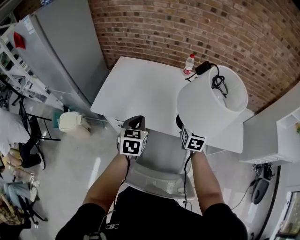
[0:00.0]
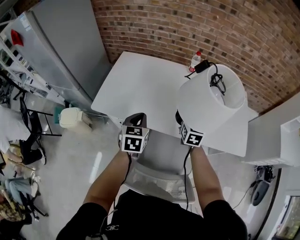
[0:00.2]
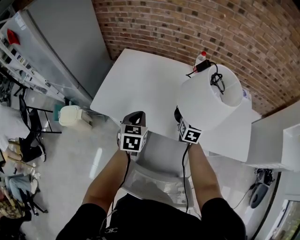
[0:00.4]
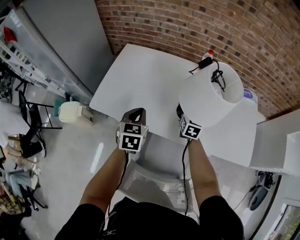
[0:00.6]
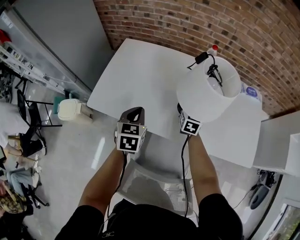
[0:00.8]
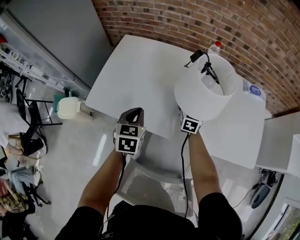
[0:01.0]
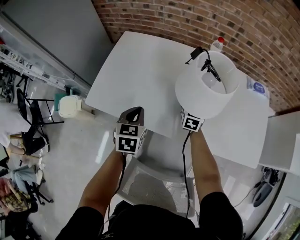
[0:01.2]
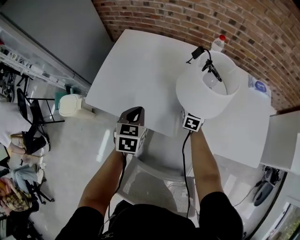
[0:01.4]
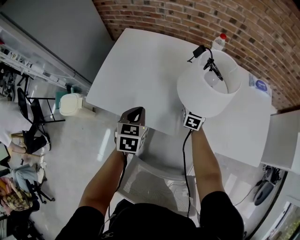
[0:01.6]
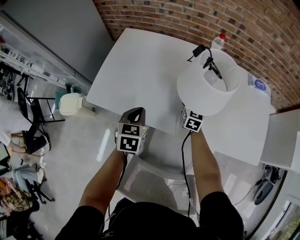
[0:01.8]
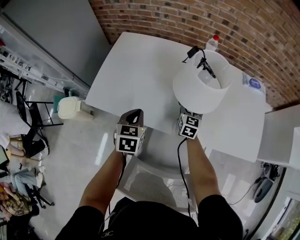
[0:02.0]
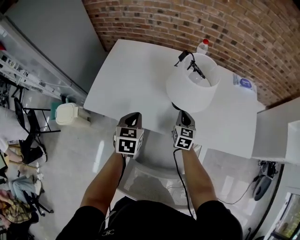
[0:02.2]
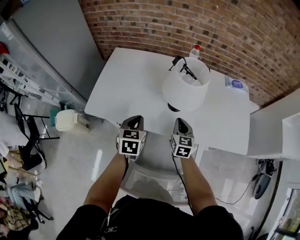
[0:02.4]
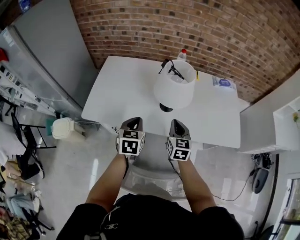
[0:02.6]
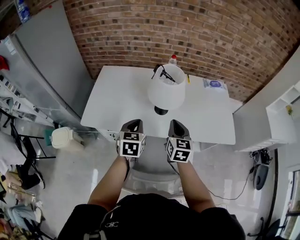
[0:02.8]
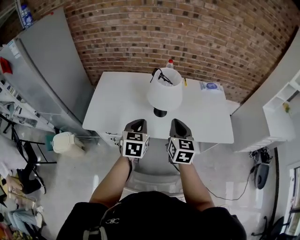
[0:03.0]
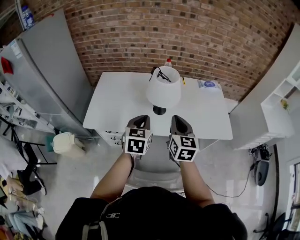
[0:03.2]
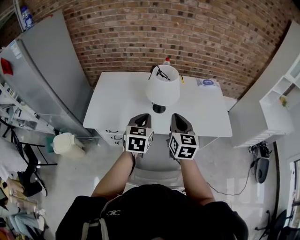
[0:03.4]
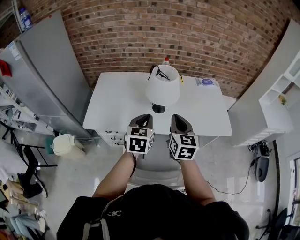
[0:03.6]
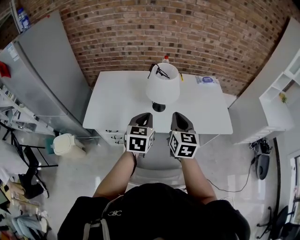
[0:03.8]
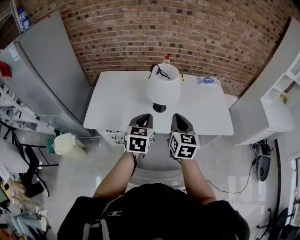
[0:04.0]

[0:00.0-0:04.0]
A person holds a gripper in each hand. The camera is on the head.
0:00.0 to 0:01.4: The right gripper is displaced downward and forward by approximately 30 cm. The left gripper goes some 15 cm downward and forward.
0:01.4 to 0:02.6: The right gripper goes some 25 cm backward and upward, and closes up. The left gripper goes about 10 cm upward, backward and to the right.
0:02.6 to 0:04.0: The left gripper travels upward and to the right by some 15 cm, while the right gripper heads upward and backward, covering approximately 15 cm.

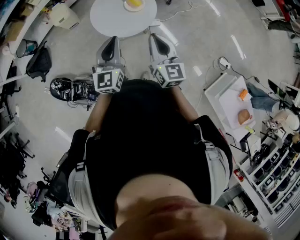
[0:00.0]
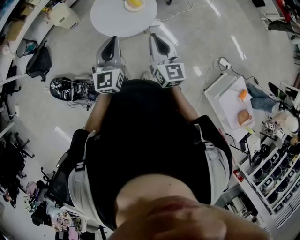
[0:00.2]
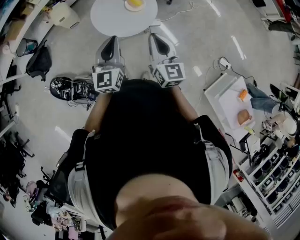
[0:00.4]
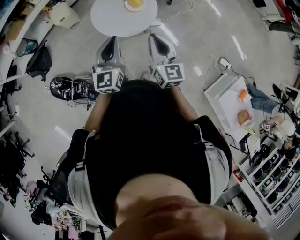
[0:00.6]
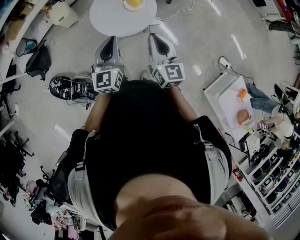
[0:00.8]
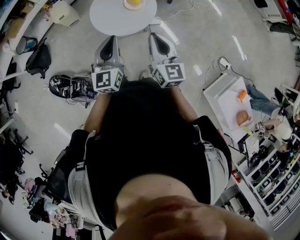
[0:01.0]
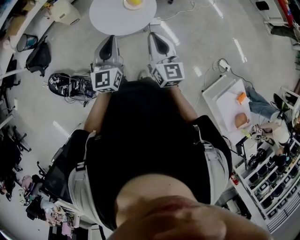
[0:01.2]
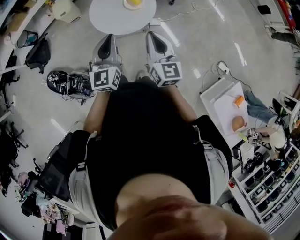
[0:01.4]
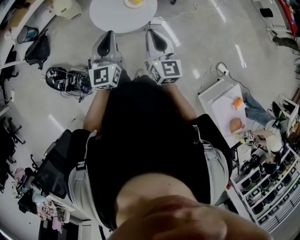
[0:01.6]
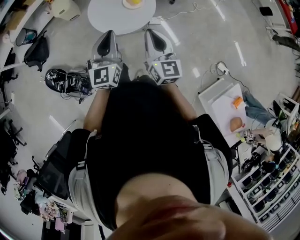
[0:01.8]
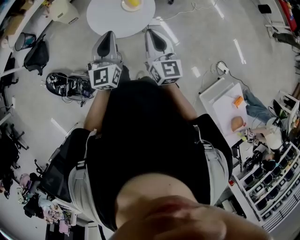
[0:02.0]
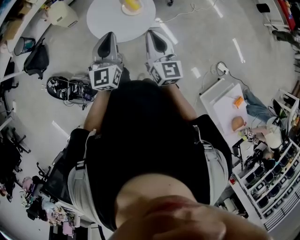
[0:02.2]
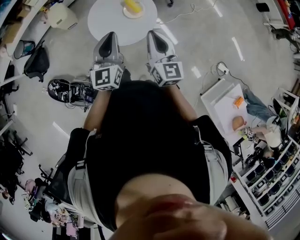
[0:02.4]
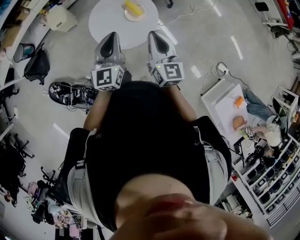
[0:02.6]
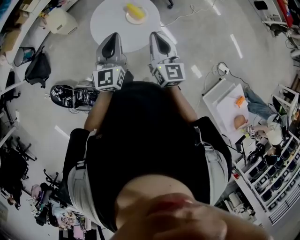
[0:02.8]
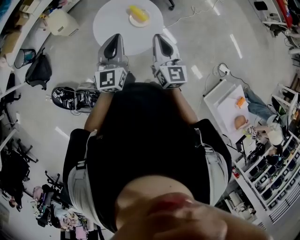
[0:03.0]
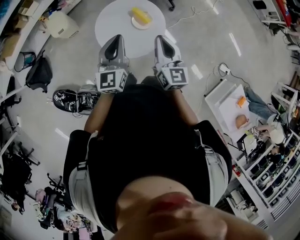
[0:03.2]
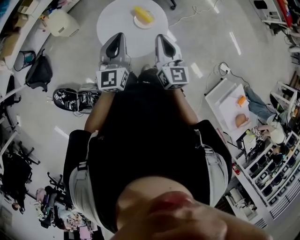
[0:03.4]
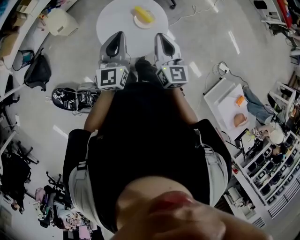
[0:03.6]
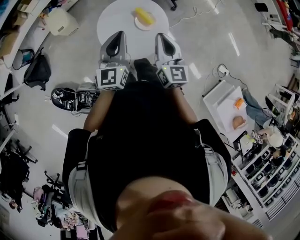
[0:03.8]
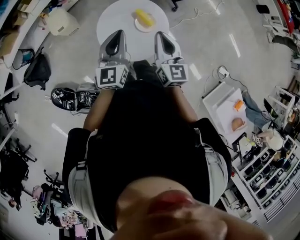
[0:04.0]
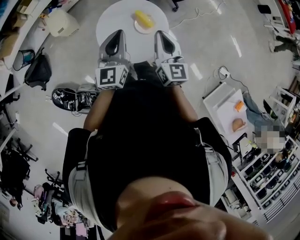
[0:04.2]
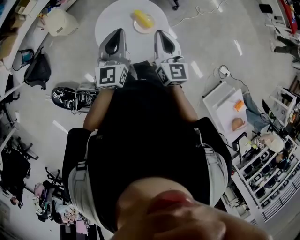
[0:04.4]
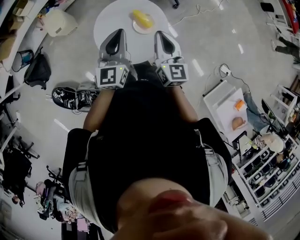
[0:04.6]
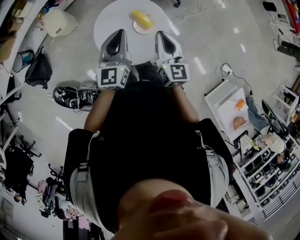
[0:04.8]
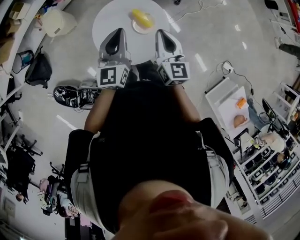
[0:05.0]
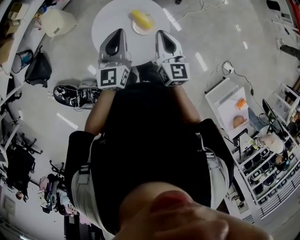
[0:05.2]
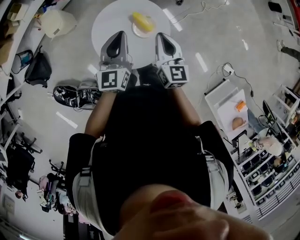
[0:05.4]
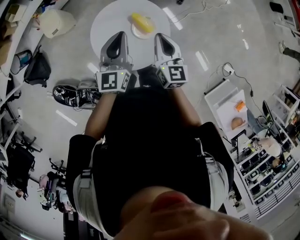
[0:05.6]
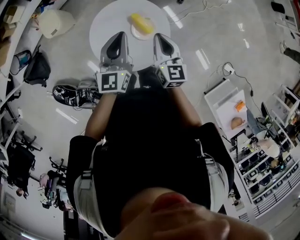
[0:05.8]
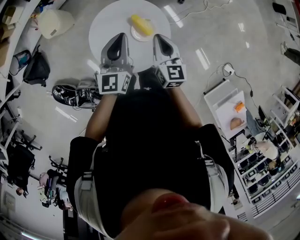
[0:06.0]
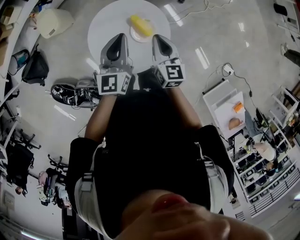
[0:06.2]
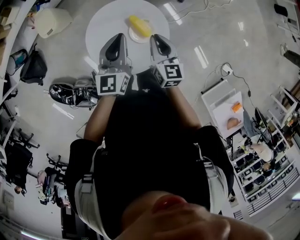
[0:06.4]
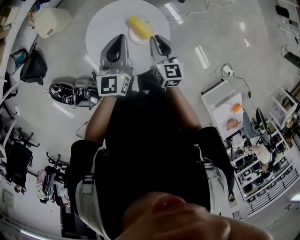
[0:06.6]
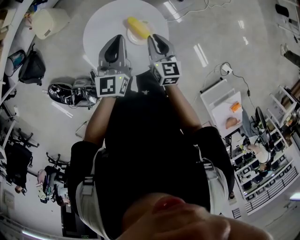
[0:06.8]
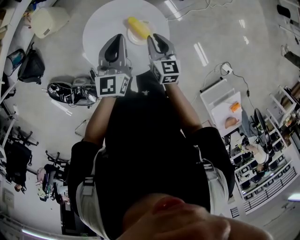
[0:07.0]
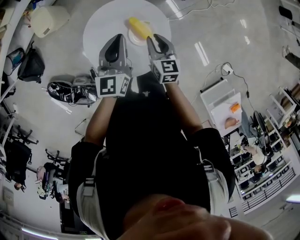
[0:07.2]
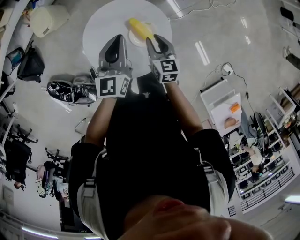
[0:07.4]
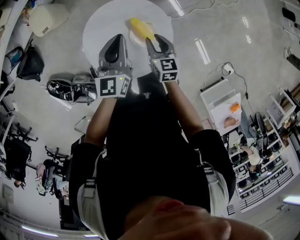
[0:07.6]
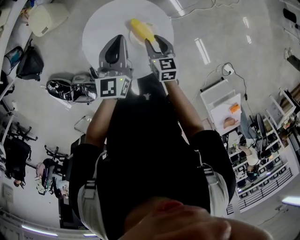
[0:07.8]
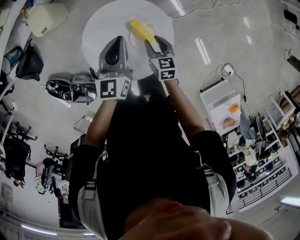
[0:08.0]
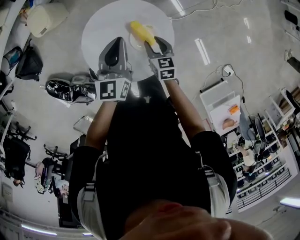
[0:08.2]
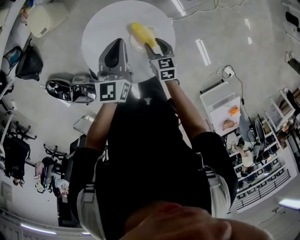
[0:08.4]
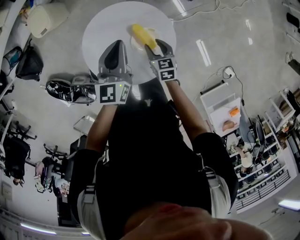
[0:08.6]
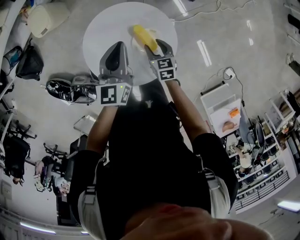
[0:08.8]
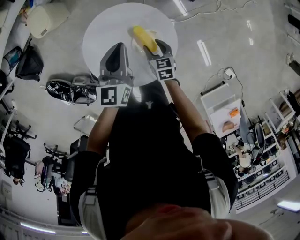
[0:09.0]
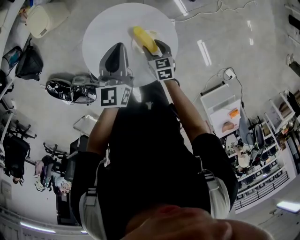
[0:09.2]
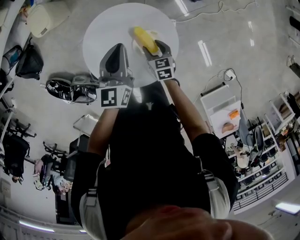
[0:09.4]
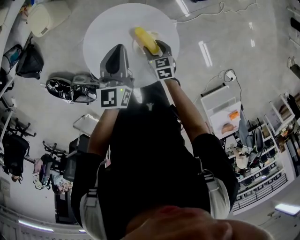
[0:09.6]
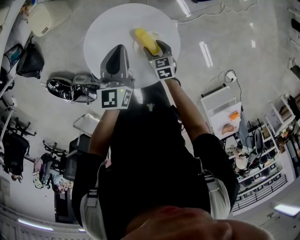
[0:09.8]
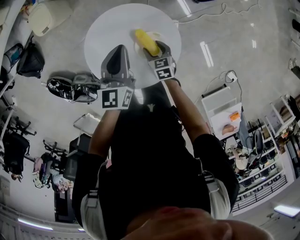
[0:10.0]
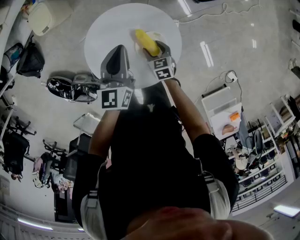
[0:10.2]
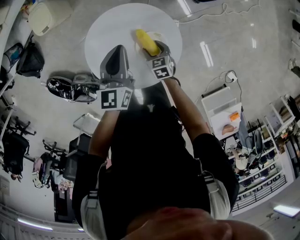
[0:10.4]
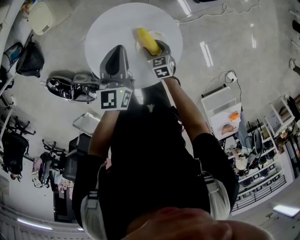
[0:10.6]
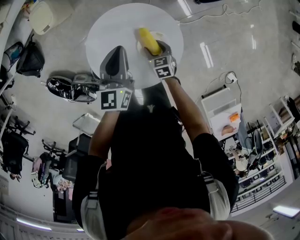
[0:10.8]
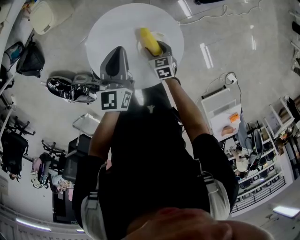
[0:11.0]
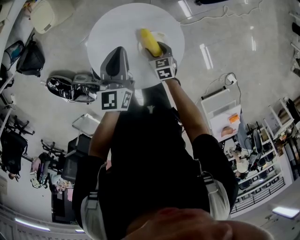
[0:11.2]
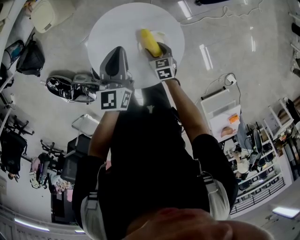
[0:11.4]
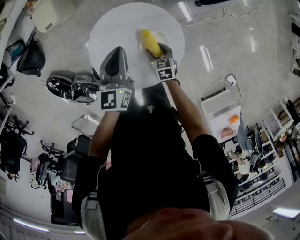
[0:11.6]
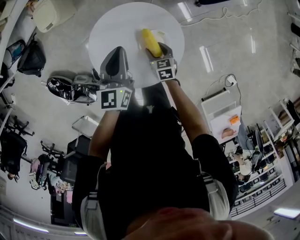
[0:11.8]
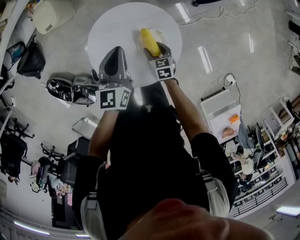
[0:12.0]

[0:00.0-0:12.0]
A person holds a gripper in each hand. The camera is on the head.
0:00.0 to 0:01.6: The grippers move only a little.
0:01.6 to 0:03.0: The grippers both shift forward by some 15 cm.
0:03.0 to 0:04.4: The two grippers go some 10 cm forward.
0:04.4 to 0:06.0: The right gripper moves downward and forward, about 15 cm; the left gripper moves forward and downward, roughly 10 cm.
0:06.0 to 0:07.6: The right gripper travels downward by roughly 15 cm, and opens up. Meanwhile the left gripper goes about 10 cm downward and forward.
0:07.6 to 0:09.0: The left gripper ends up about 5 cm from where it was, while the right gripper heads downward, covering roughly 10 cm, and opens.
0:09.0 to 0:10.4: The right gripper ends up roughly 5 cm from where it was.
0:10.4 to 0:12.0: The grippers make only small movements.

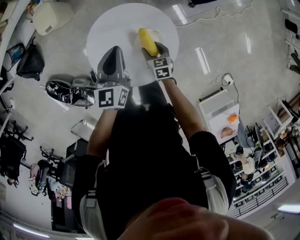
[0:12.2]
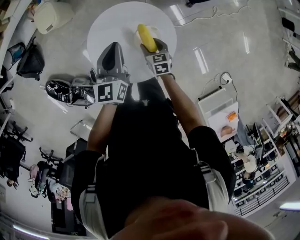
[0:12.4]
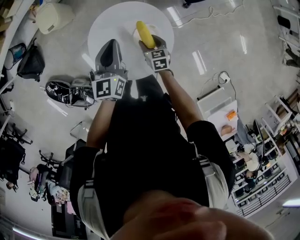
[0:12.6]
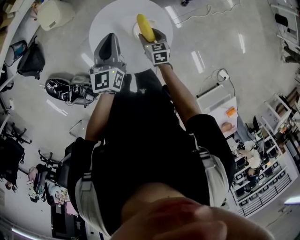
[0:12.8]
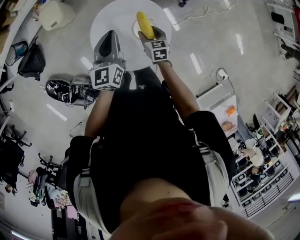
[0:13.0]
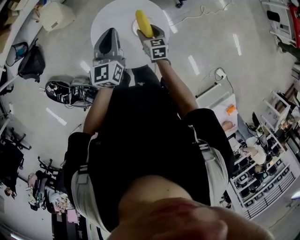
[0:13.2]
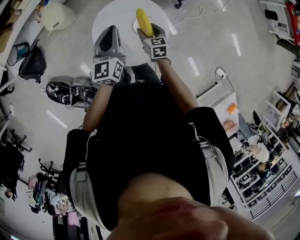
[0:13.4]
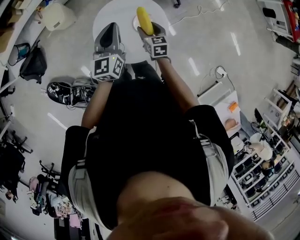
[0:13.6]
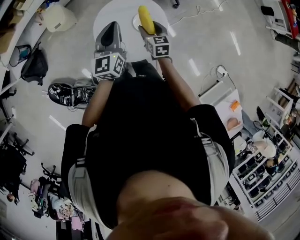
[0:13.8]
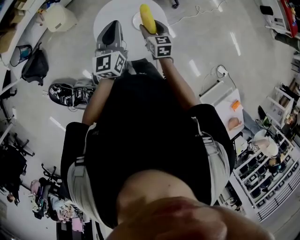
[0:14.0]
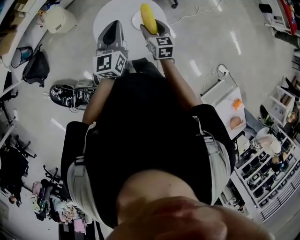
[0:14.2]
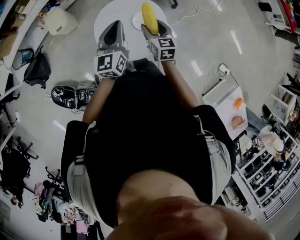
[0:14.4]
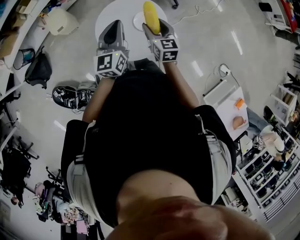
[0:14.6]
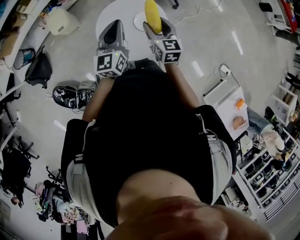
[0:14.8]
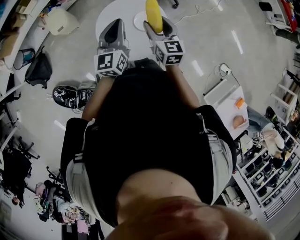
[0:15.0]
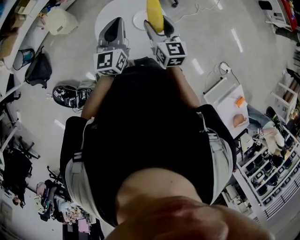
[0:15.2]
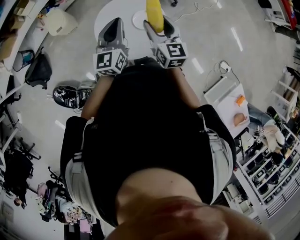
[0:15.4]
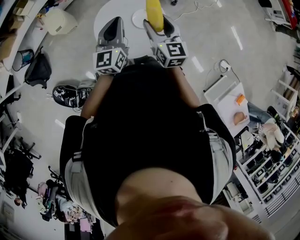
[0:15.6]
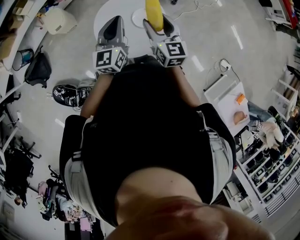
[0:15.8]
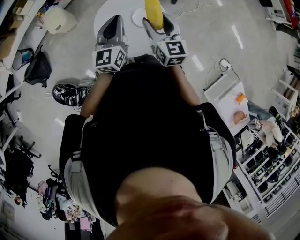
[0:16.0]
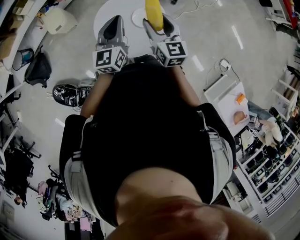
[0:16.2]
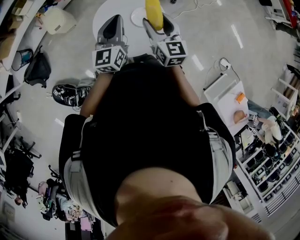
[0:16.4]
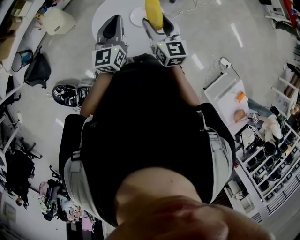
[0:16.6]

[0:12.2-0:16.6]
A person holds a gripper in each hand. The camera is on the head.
0:12.2 to 0:13.6: The right gripper goes approximately 20 cm upward. Meanwhile the left gripper travels upward and backward by some 15 cm.
0:13.6 to 0:15.2: The left gripper ends up approximately 5 cm from where it was. The right gripper shifts roughly 20 cm upward, and turns by roughly 20 degrees.
0:15.2 to 0:16.6: Neither gripper changes place.

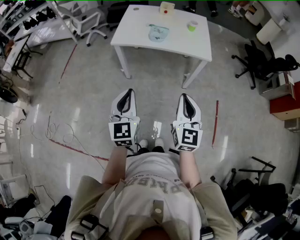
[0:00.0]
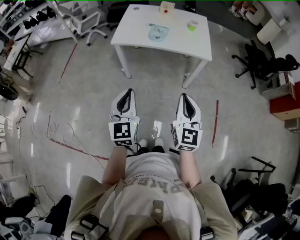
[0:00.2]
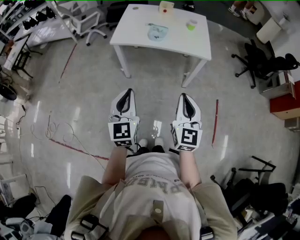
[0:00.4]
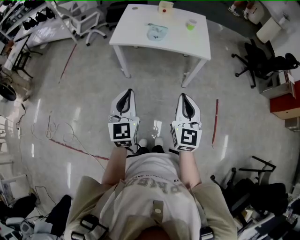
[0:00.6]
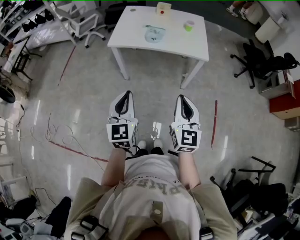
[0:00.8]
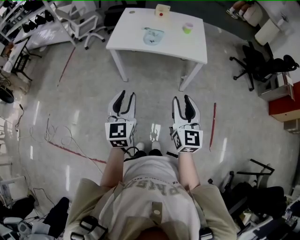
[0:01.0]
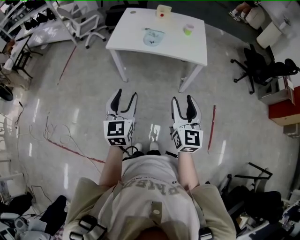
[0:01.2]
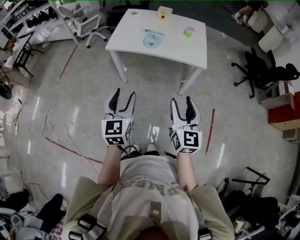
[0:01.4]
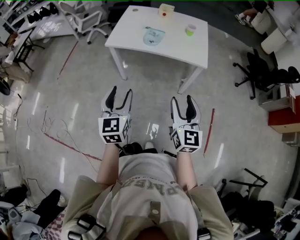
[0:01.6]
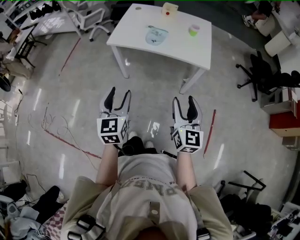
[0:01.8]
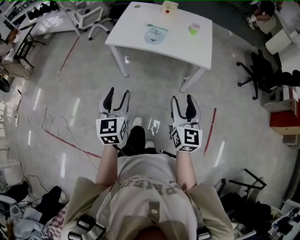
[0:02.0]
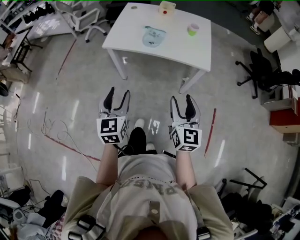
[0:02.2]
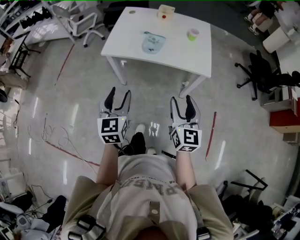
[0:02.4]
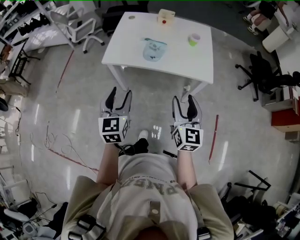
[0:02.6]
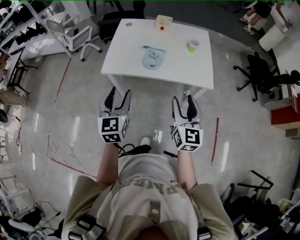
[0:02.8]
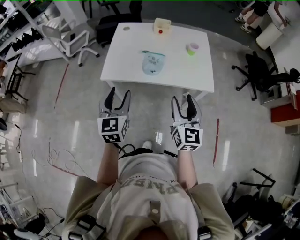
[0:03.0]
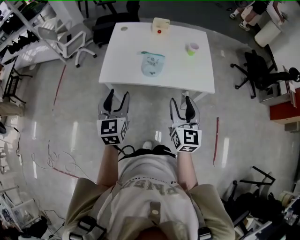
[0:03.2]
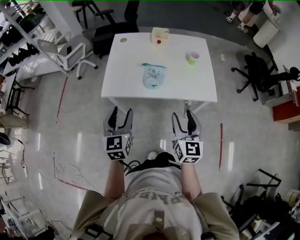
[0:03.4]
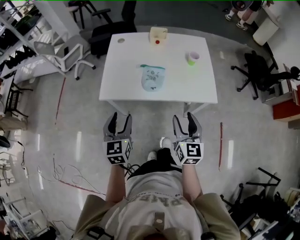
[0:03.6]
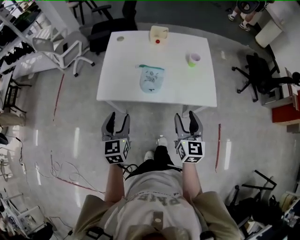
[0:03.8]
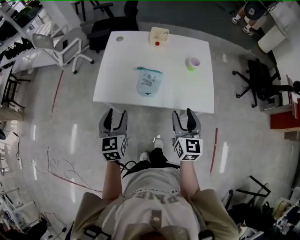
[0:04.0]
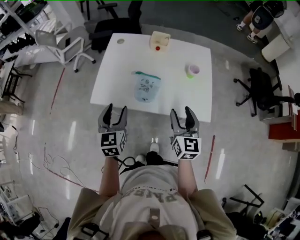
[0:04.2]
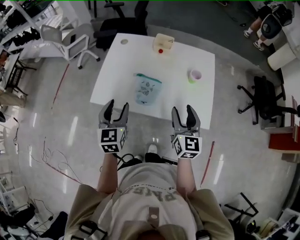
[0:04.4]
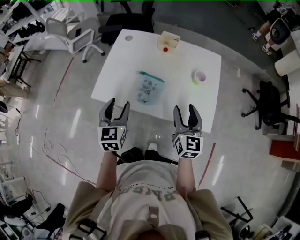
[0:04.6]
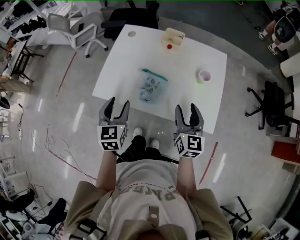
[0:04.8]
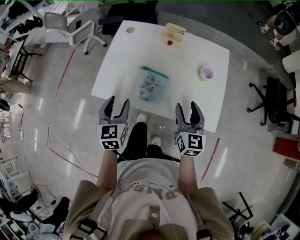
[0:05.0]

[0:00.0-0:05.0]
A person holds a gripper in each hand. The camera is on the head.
0:00.0 to 0:01.6: The right gripper is displaced to the right and forward by some 10 cm, and opens up; the left gripper moves to the right, some 5 cm, and opens up.
0:01.6 to 0:03.4: The two grippers go some 30 cm forward.
0:03.4 to 0:05.0: The grippers both shift forward and to the right by approximately 20 cm.
